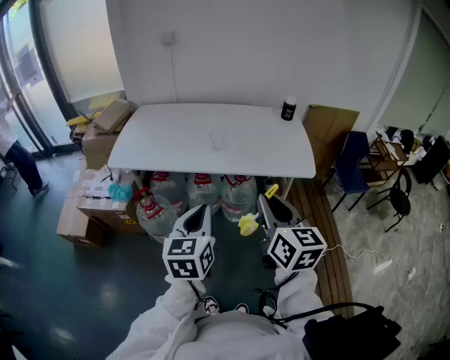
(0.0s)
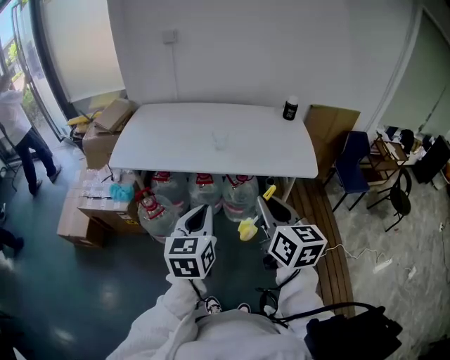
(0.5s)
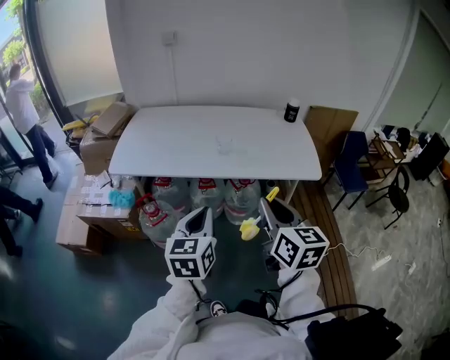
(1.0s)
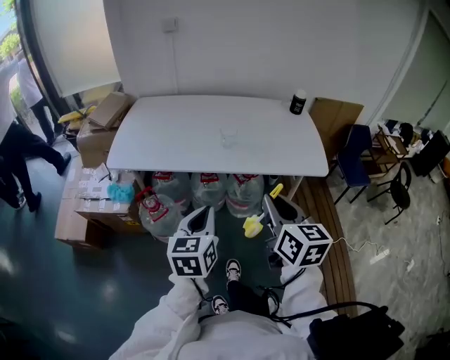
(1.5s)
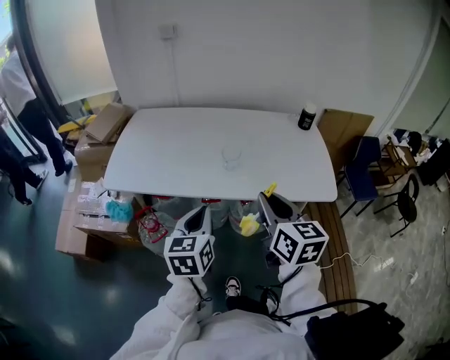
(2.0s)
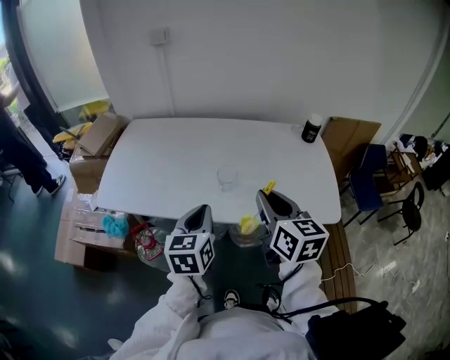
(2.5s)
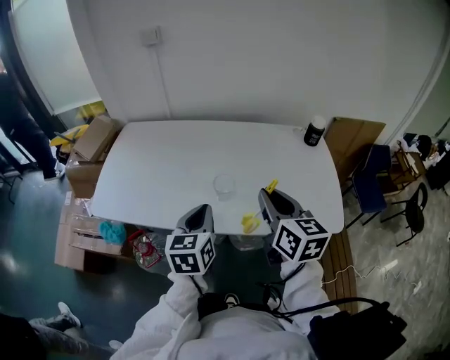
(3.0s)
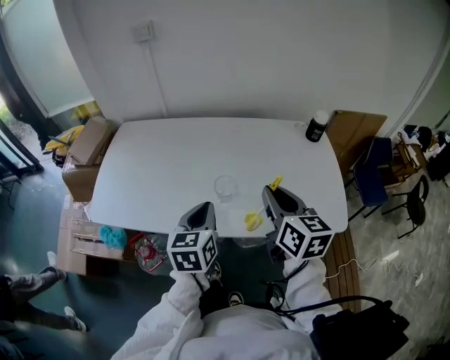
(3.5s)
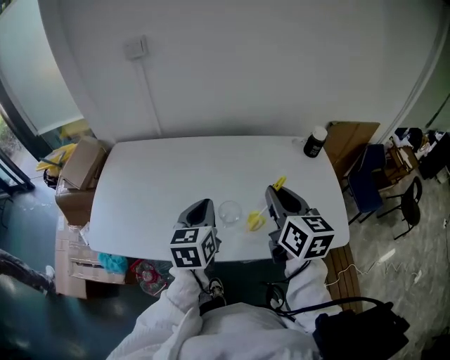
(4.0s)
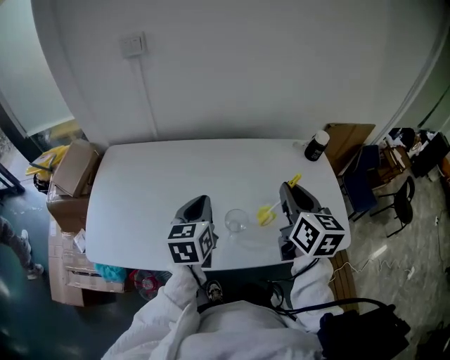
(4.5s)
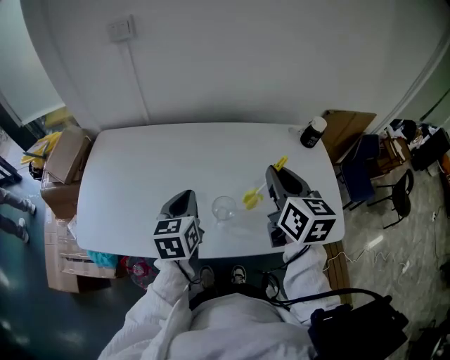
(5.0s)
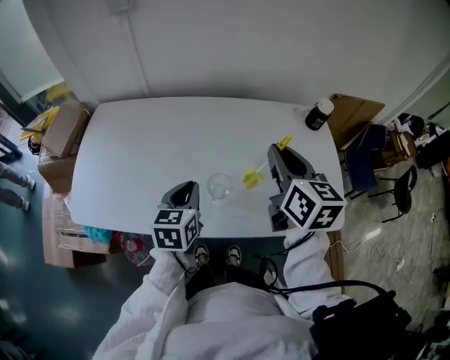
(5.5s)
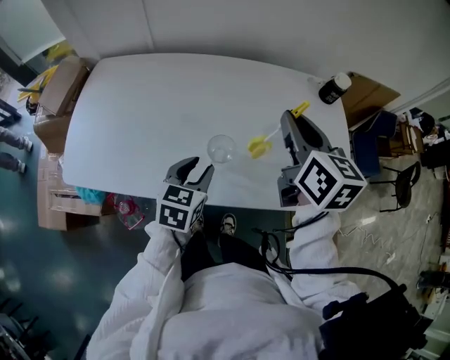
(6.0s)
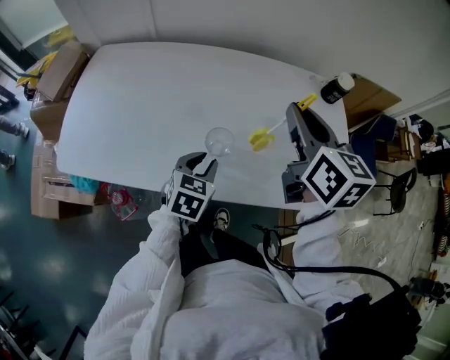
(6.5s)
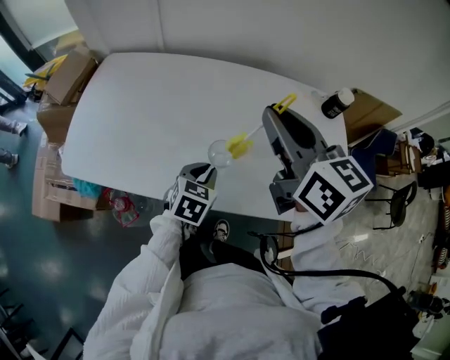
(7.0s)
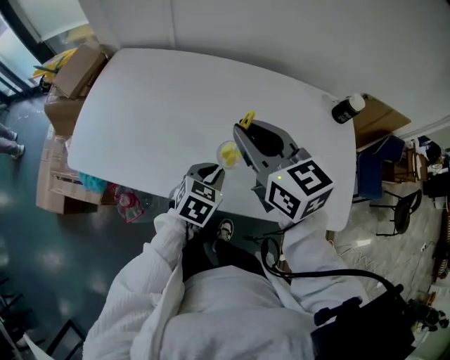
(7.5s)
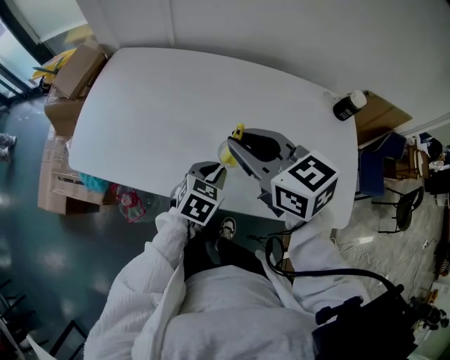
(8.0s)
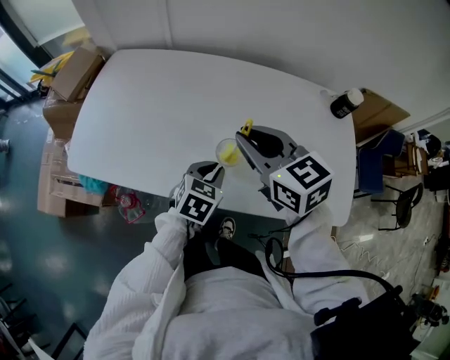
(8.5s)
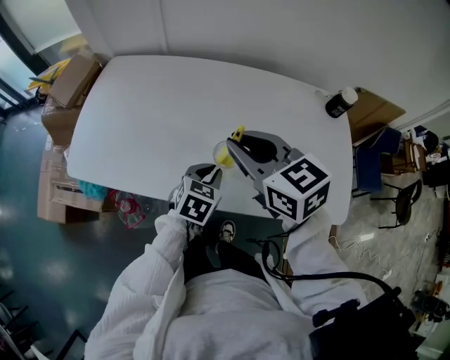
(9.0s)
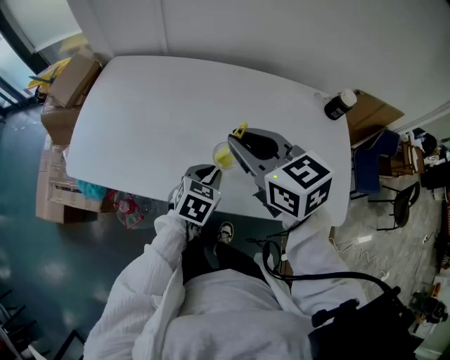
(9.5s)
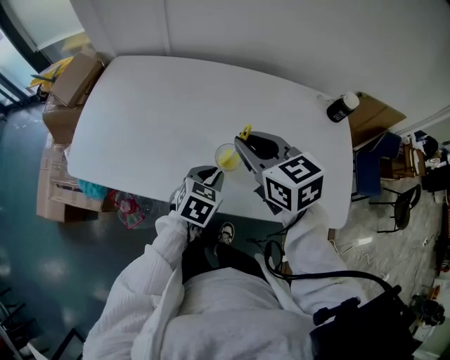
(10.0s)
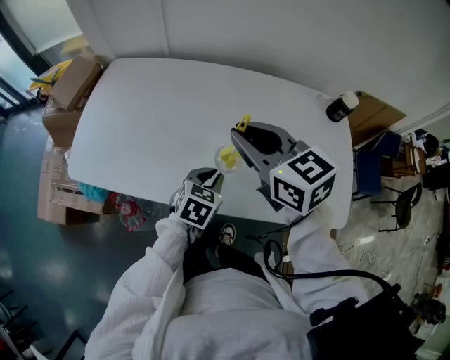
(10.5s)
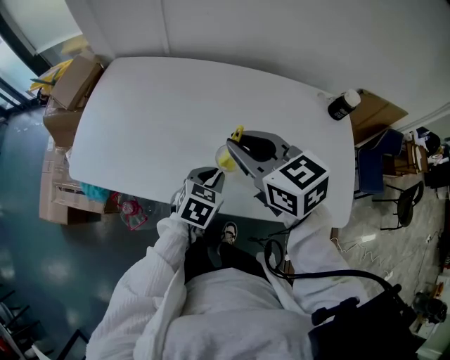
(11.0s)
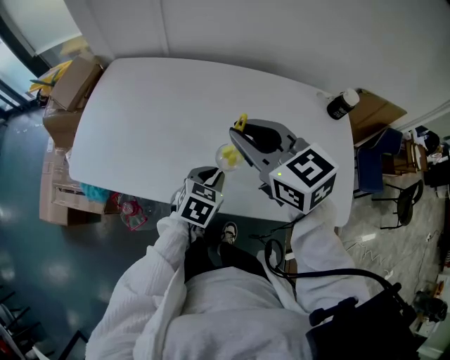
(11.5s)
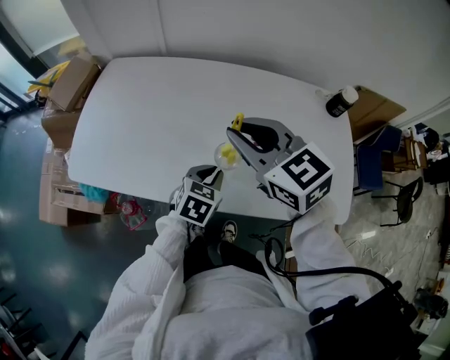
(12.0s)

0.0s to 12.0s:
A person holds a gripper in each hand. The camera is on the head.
0.0s to 2.0s: The two grippers go about 20 cm forward.
2.0s to 4.0s: The grippers both shift forward by some 30 cm.
4.0s to 6.0s: The left gripper goes roughly 10 cm downward, and opens its fingers; the right gripper is displaced forward by some 5 cm.
6.0s to 8.0s: The right gripper travels to the left by approximately 15 cm, and changes its angle by about 40 degrees.
8.0s to 10.0s: The right gripper ends up roughly 5 cm from where it was.
10.0s to 12.0s: The right gripper moves upward, about 5 cm.

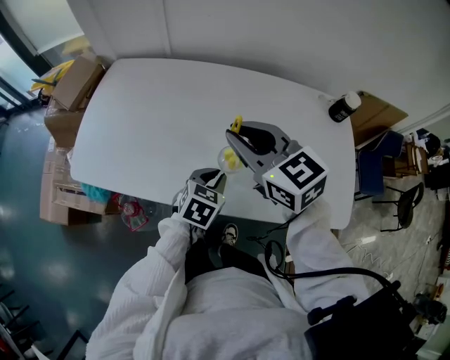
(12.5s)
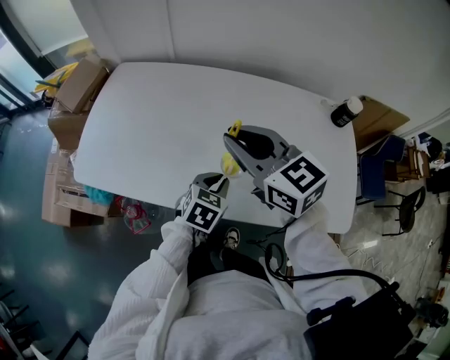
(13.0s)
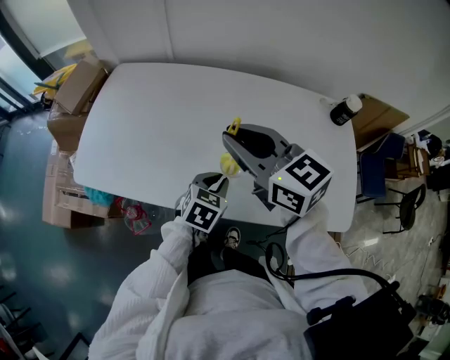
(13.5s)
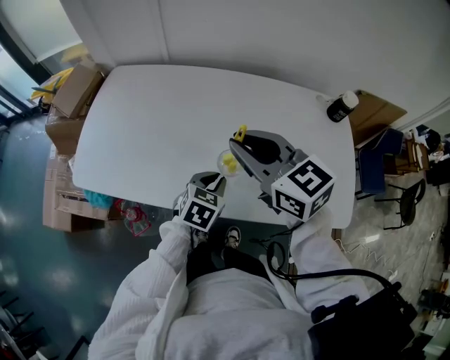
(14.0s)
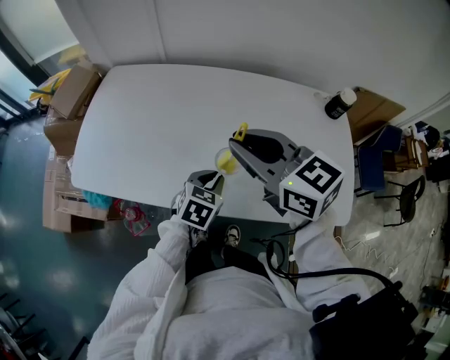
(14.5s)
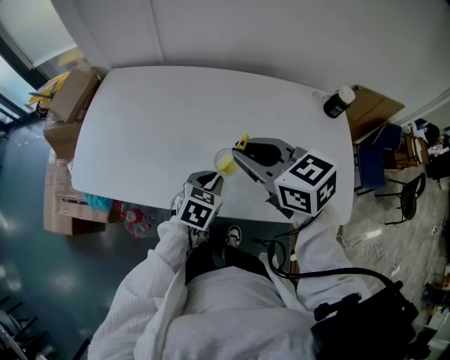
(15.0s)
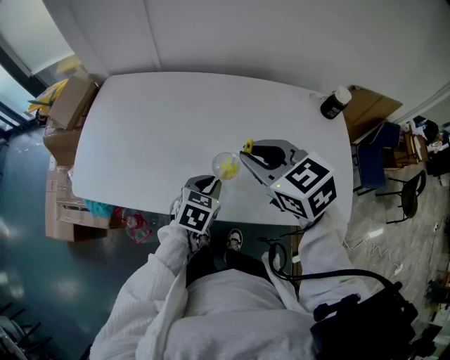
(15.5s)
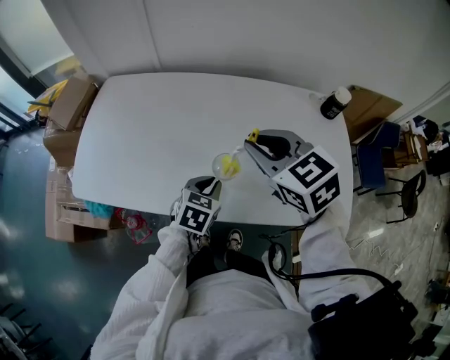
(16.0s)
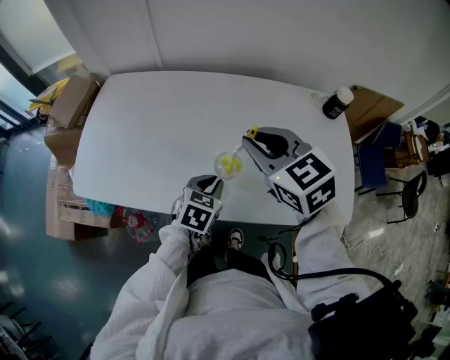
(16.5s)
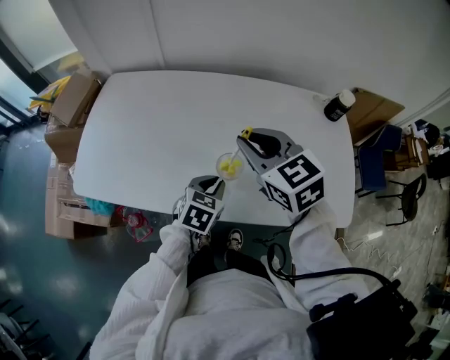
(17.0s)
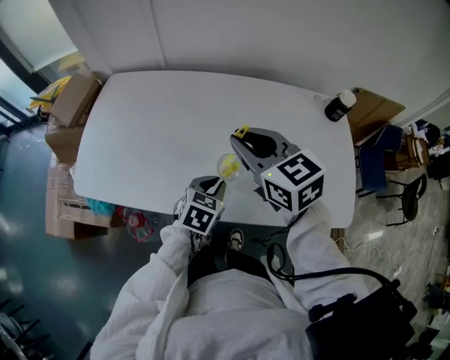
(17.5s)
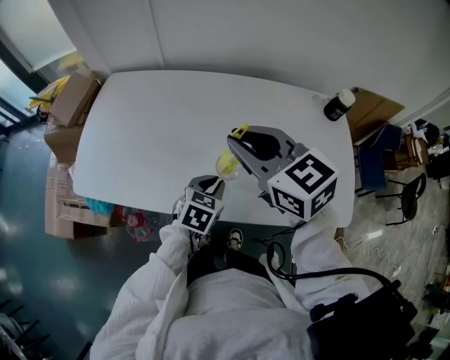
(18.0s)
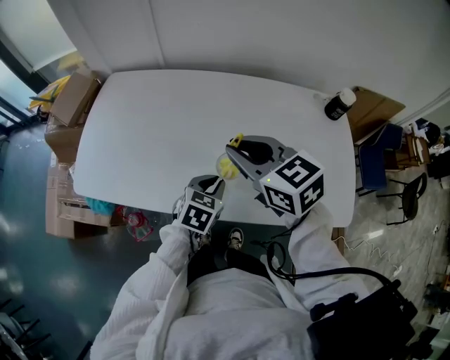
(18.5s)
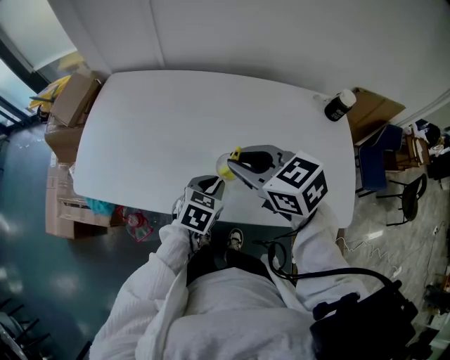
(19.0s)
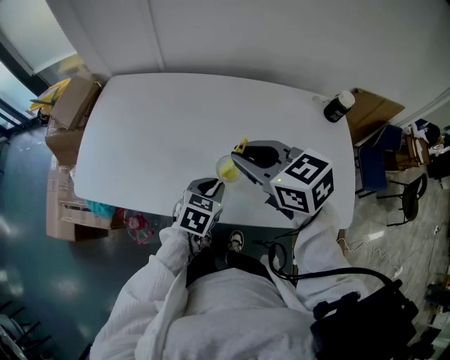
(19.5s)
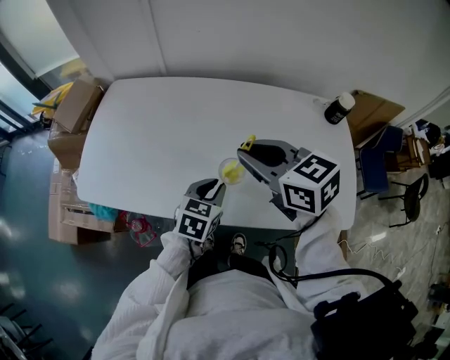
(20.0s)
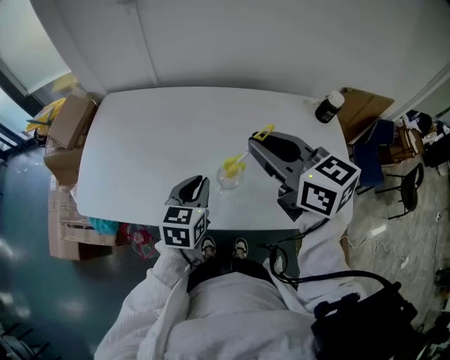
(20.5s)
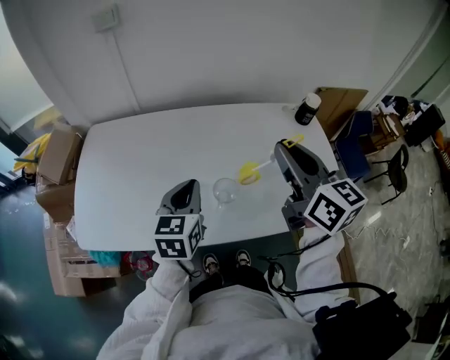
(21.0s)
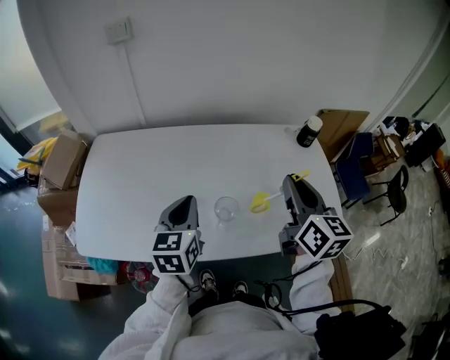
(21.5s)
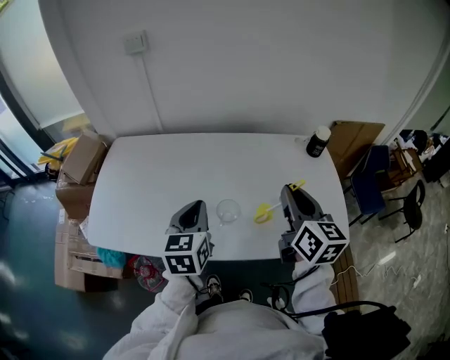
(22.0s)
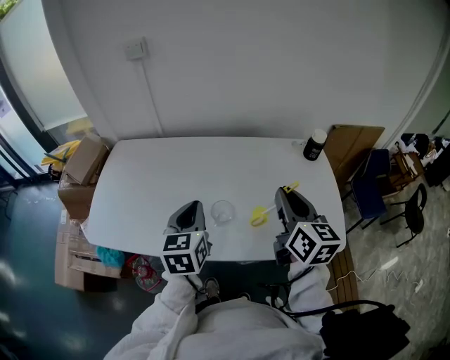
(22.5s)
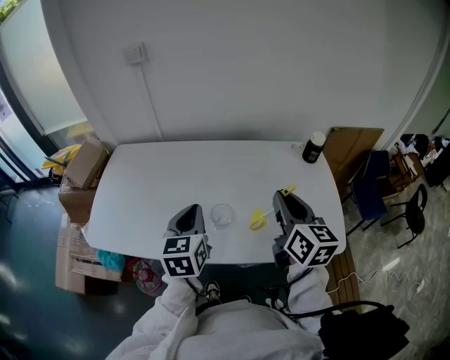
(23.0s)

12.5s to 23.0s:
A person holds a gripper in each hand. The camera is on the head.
12.5s to 14.5s: The grippers move only a little.
14.5s to 16.5s: The right gripper shifts by some 5 cm, and swivels about 20 degrees.
16.5s to 19.0s: The right gripper shifts by approximately 5 cm.
19.0s to 21.0s: The right gripper heads upward and to the right, covering roughly 15 cm, and rotates roughly 50 degrees. The left gripper is displaced upward and to the left by some 15 cm, and changes its angle by roughly 20 degrees.
21.0s to 23.0s: The right gripper heads to the right, covering some 5 cm; the left gripper moves about 5 cm.

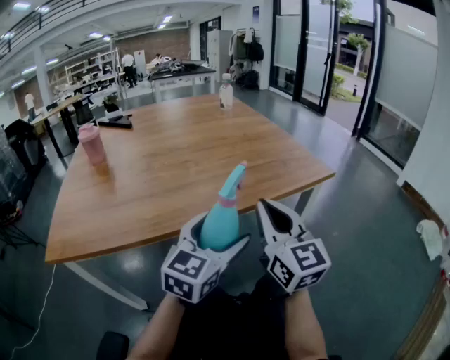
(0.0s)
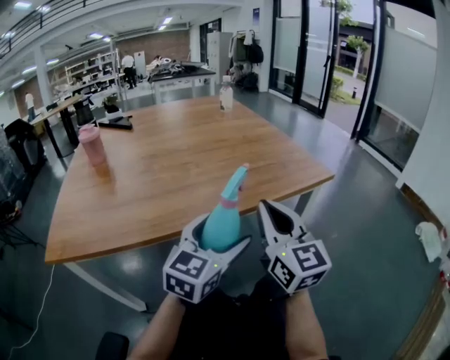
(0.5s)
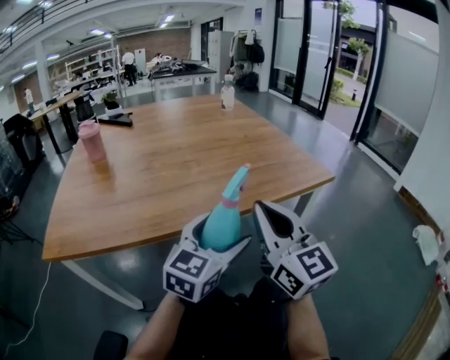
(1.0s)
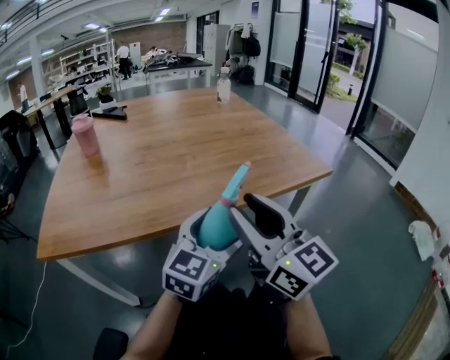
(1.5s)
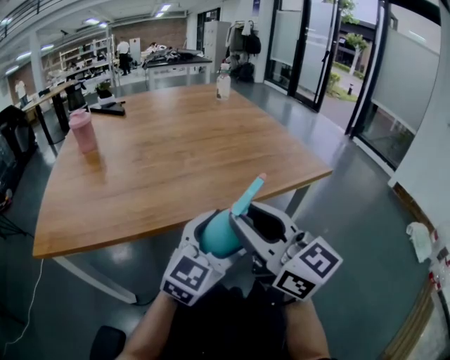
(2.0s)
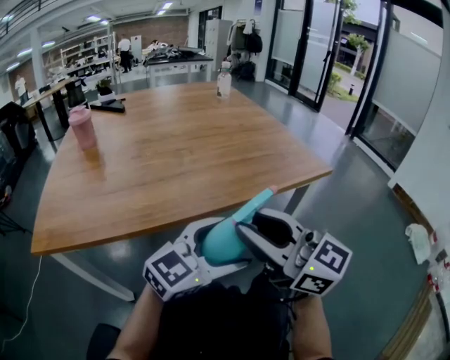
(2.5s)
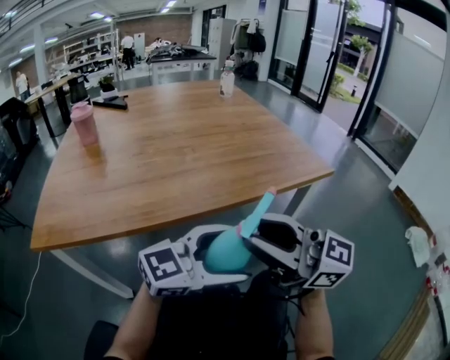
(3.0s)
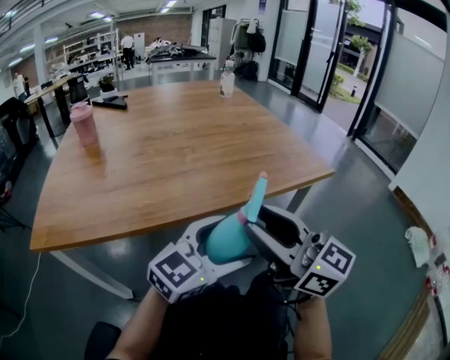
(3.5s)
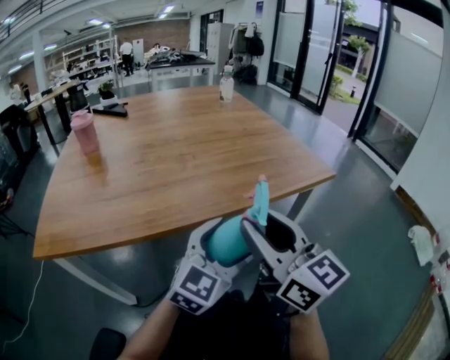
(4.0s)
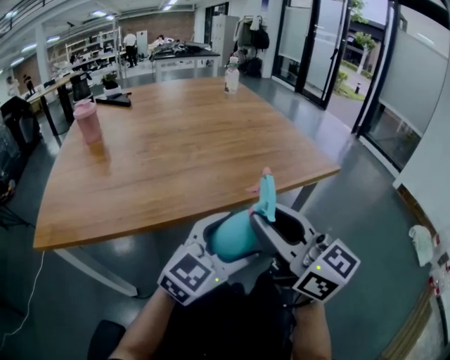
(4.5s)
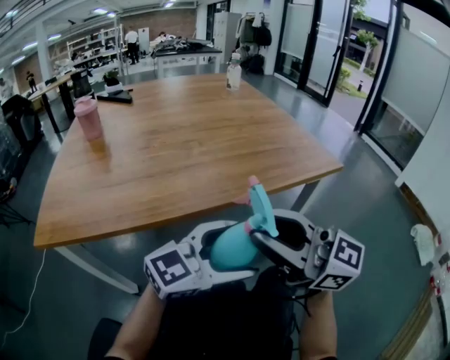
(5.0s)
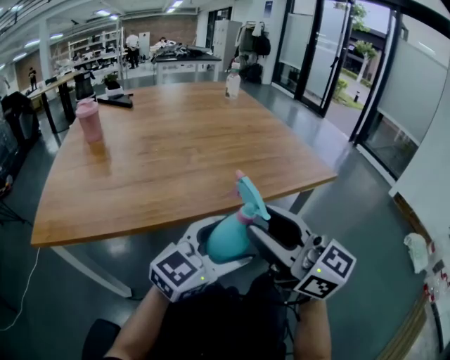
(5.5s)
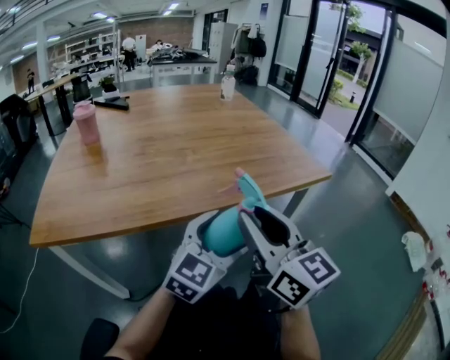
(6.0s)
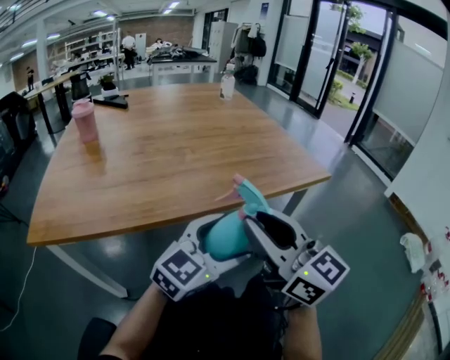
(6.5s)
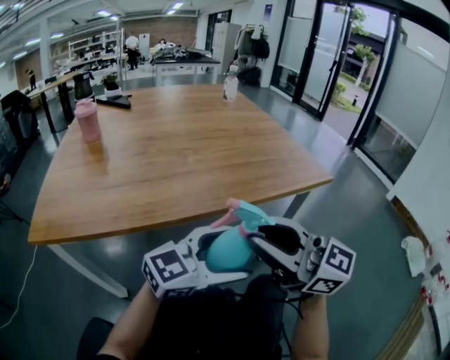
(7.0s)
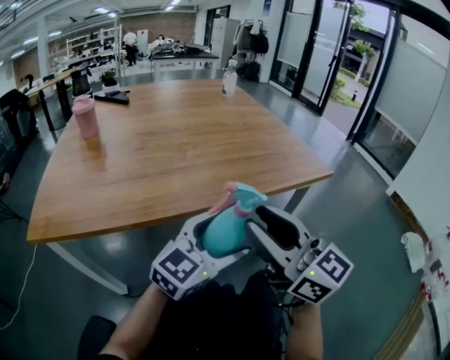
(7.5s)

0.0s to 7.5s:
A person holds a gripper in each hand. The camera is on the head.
0.0s to 2.0s: The right gripper goes roughly 5 cm backward, changes its angle by approximately 20 degrees, and opens.
